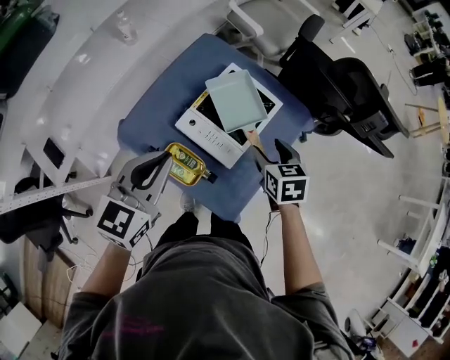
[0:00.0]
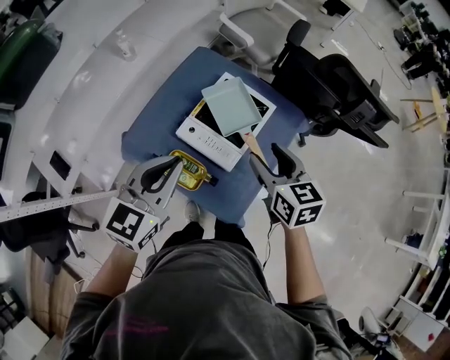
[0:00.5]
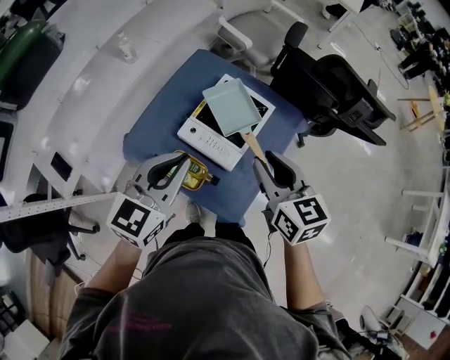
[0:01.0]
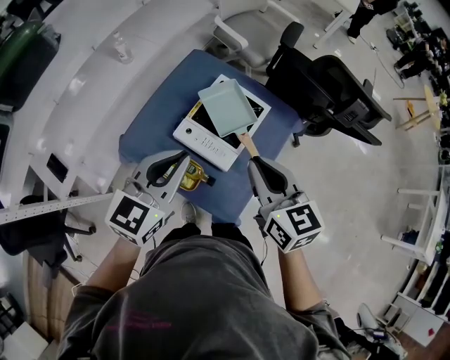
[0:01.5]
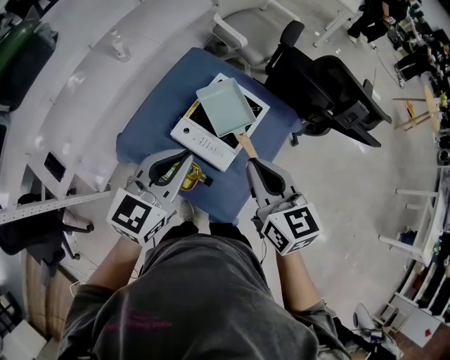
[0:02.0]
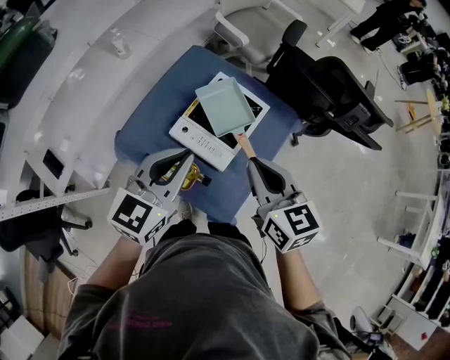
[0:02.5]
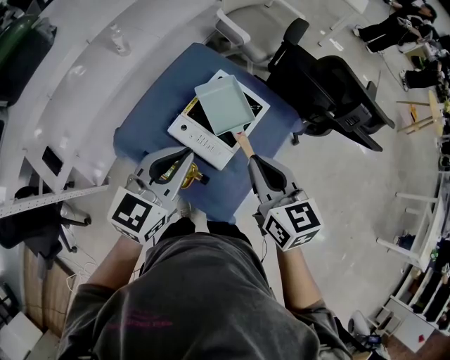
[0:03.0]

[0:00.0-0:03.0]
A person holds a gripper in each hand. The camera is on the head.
0:00.0 to 0:01.5: The left gripper changes place by some 5 cm; the right gripper goes about 20 cm upward and backward, swivels approximately 30 degrees, and closes.
0:01.5 to 0:03.0: The grippers stay close to where they were, moving slightly.

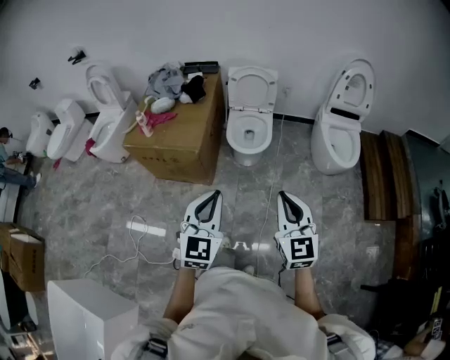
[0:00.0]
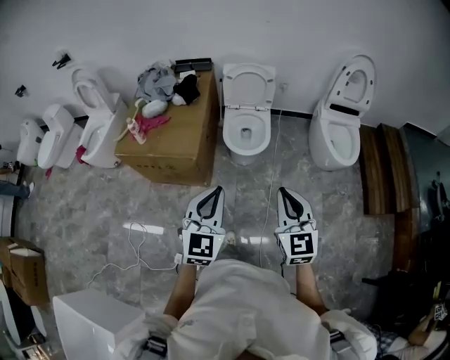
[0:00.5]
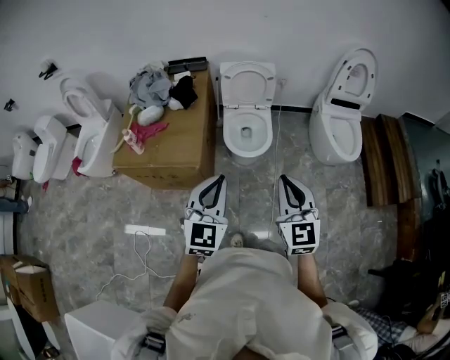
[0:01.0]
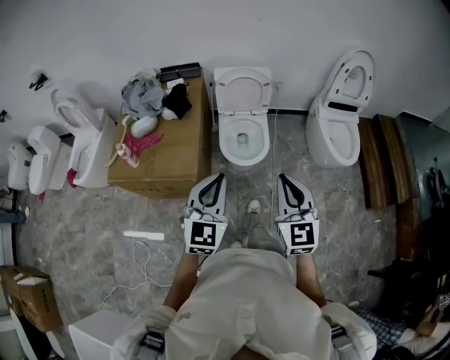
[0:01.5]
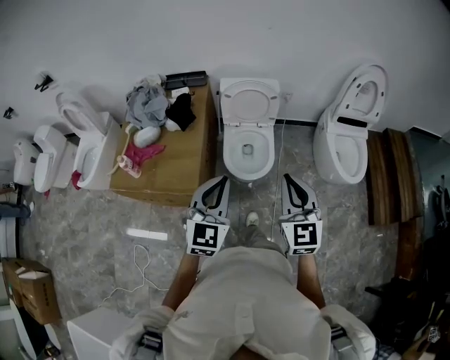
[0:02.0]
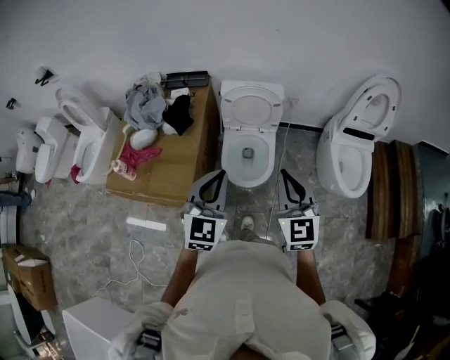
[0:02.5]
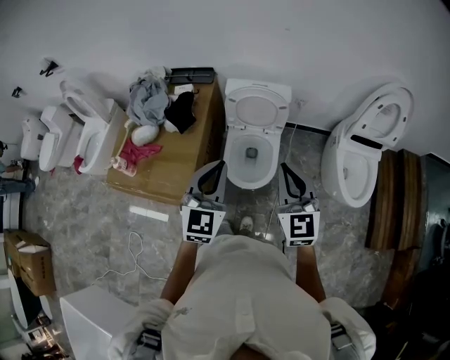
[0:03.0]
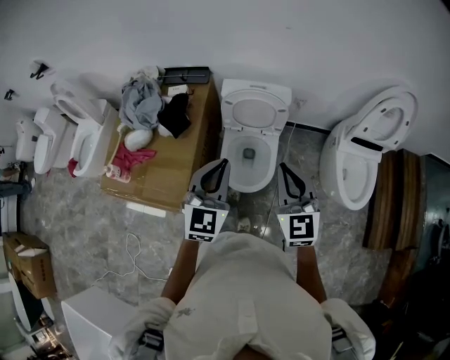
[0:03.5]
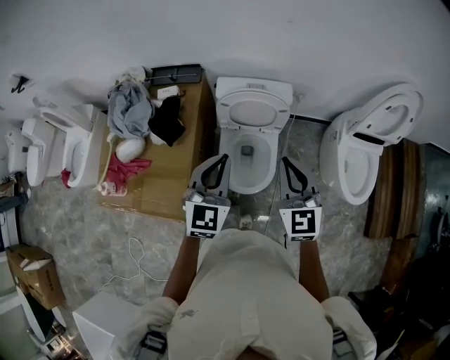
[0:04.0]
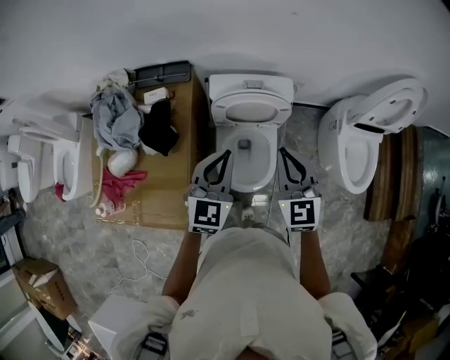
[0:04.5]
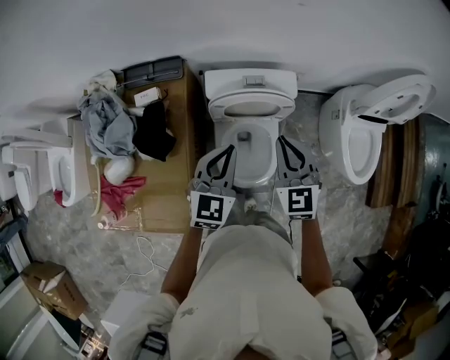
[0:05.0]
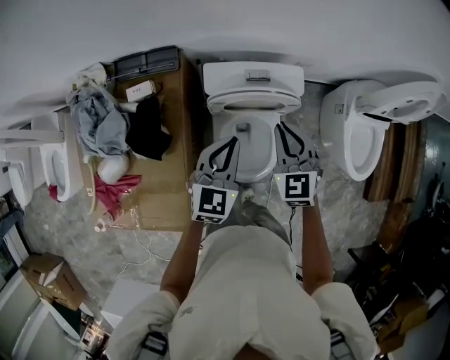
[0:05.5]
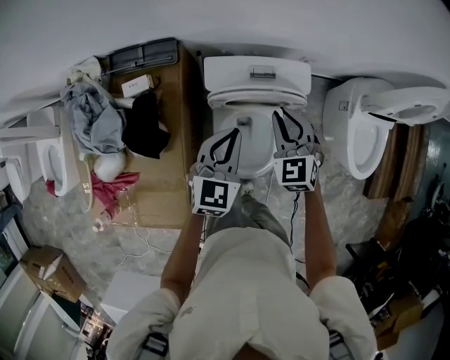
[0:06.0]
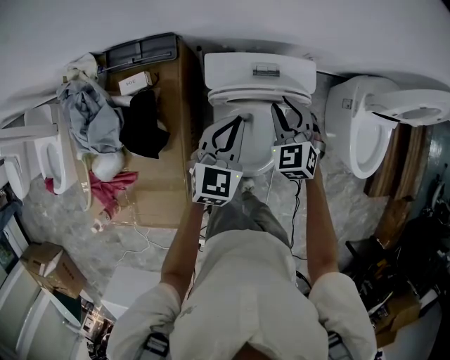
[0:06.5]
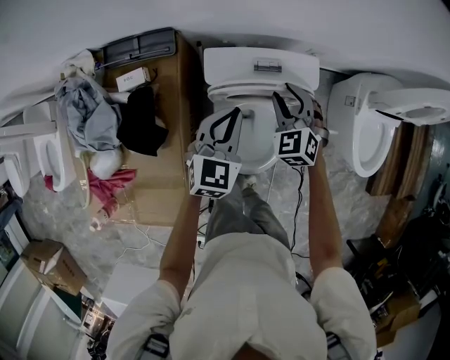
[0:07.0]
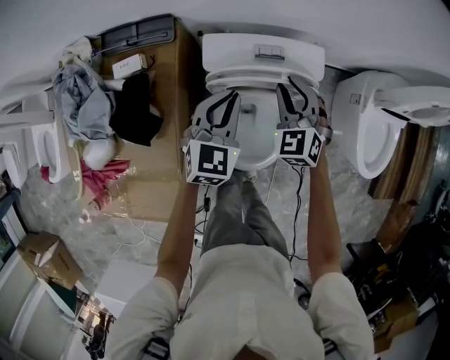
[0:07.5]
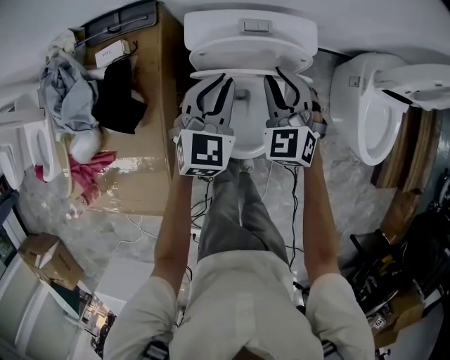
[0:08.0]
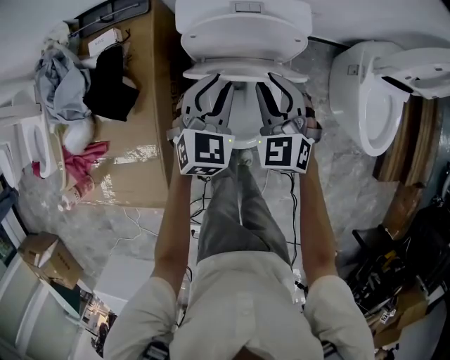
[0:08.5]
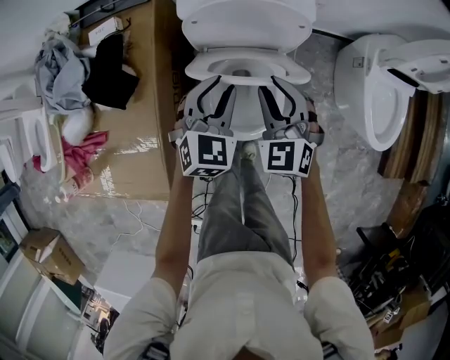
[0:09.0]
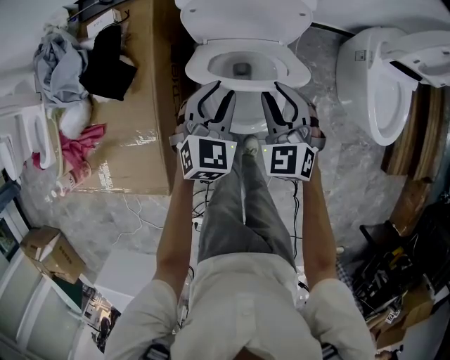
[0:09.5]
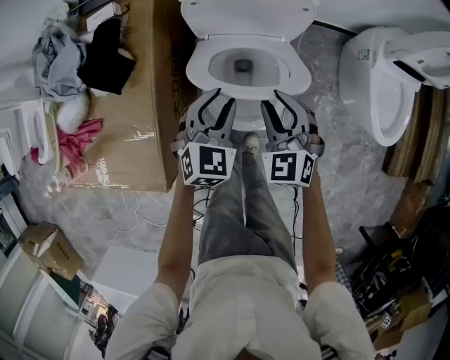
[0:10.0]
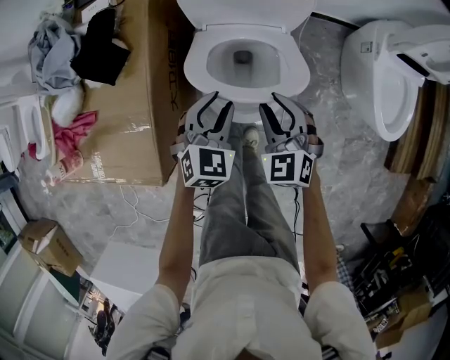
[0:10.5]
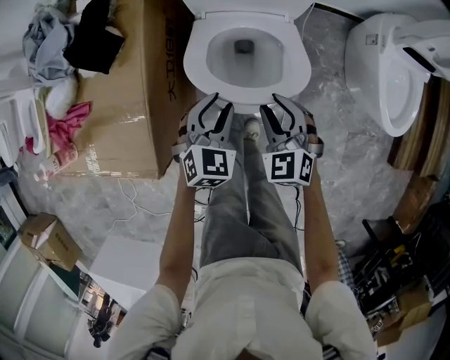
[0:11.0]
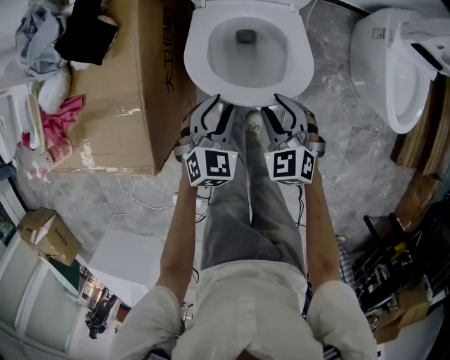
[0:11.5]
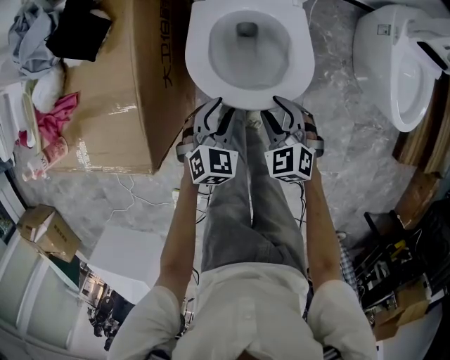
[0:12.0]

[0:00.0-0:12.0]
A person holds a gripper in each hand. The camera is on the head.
0:00.0 to 0:02.0: The grippers both shift forward by approximately 30 cm.
0:02.0 to 0:04.0: The grippers both shift forward by some 30 cm.
0:04.0 to 0:06.0: The two grippers go roughly 30 cm forward and downward. The right gripper turns by approximately 20 degrees.
0:06.0 to 0:08.0: The grippers both shift downward by about 5 cm.
0:08.0 to 0:10.0: The right gripper moves backward, about 20 cm, while the left gripper is displaced backward and downward by some 20 cm, and opens up.
0:10.0 to 0:12.0: The two grippers go about 20 cm downward and backward.

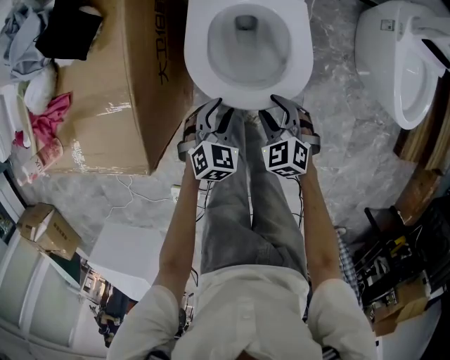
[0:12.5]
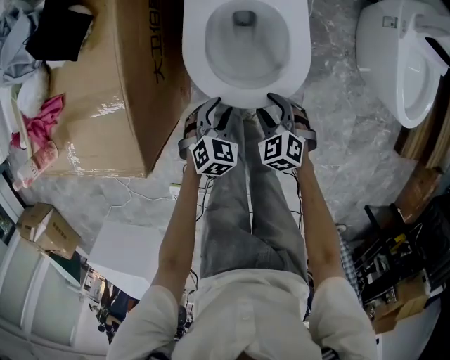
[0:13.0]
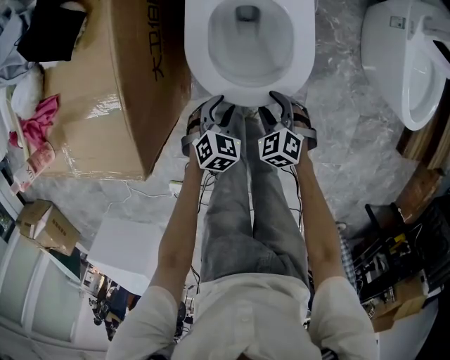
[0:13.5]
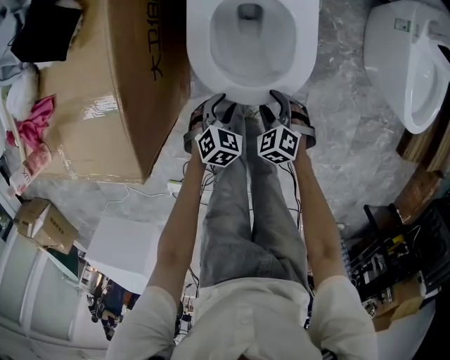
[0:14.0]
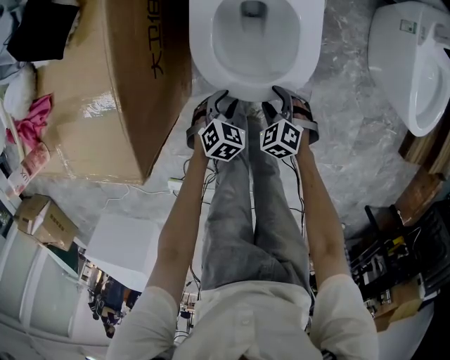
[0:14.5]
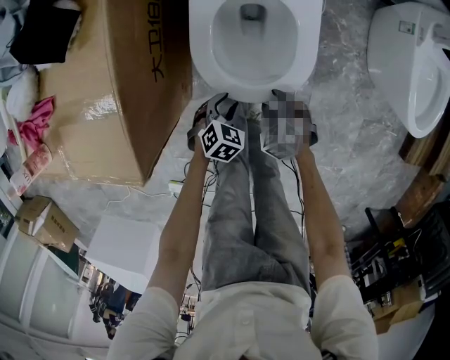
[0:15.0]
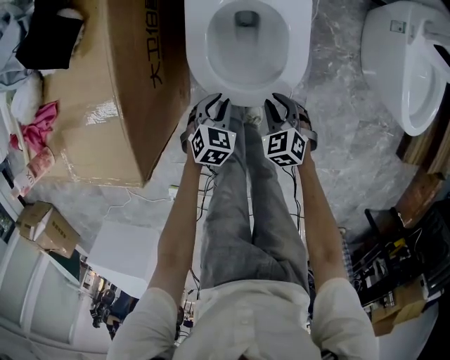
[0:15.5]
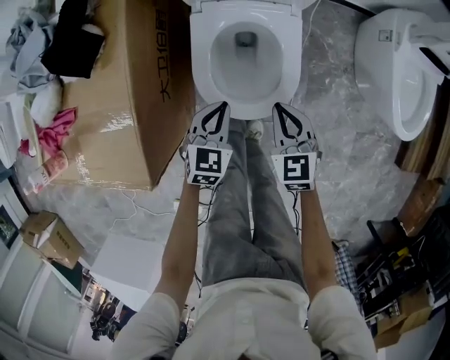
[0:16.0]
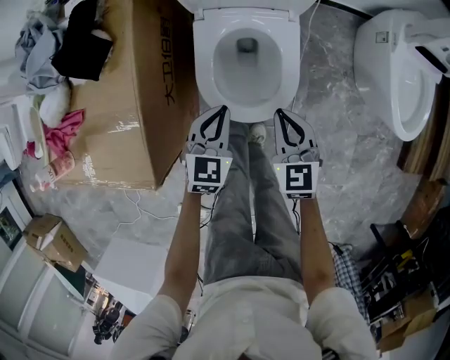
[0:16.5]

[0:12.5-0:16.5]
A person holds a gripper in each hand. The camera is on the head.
0:12.5 to 0:14.5: The grippers both shift downward by approximately 15 cm.
0:14.5 to 0:16.5: The right gripper is displaced upward by approximately 25 cm, angles its fingers upward, by roughly 30 degrees, and closes up. Meanwhile the left gripper shifts some 25 cm upward and forward, swivels roughly 30 degrees, and closes.

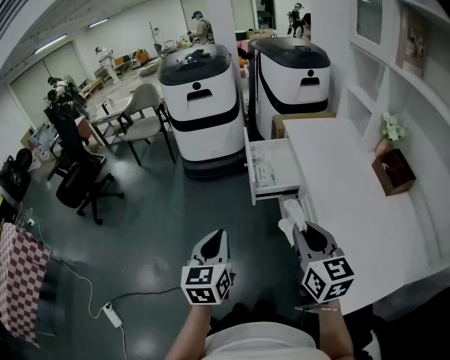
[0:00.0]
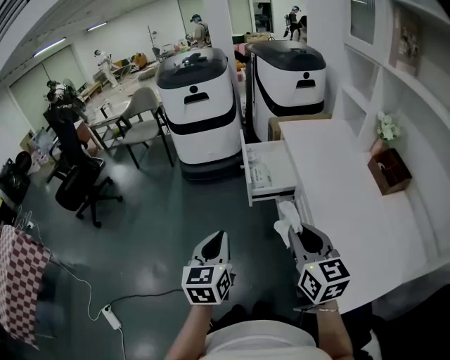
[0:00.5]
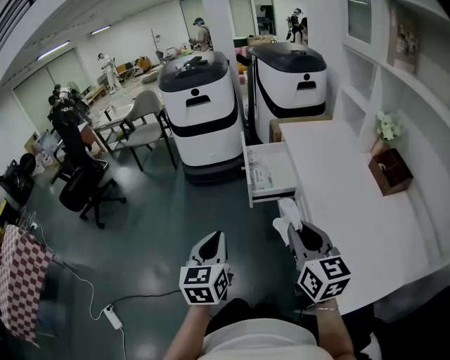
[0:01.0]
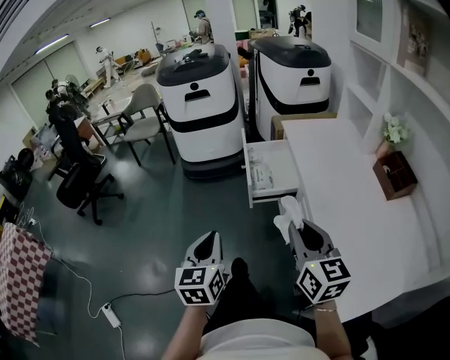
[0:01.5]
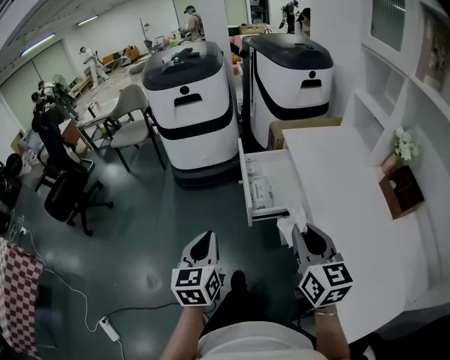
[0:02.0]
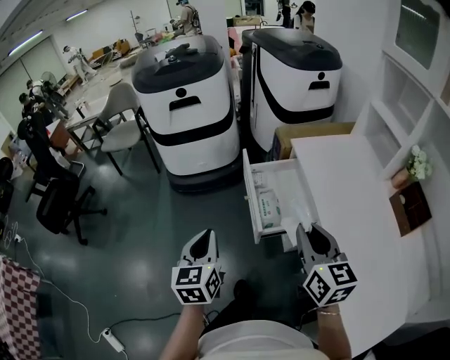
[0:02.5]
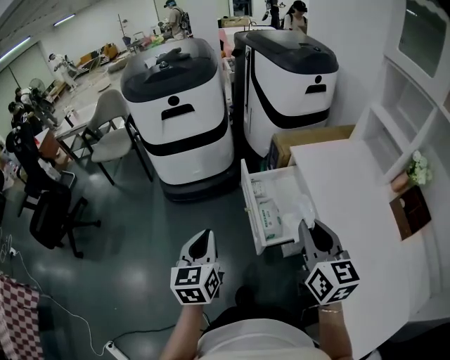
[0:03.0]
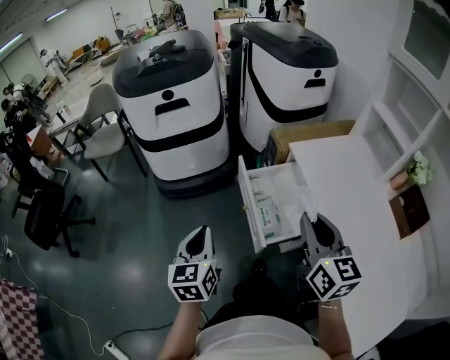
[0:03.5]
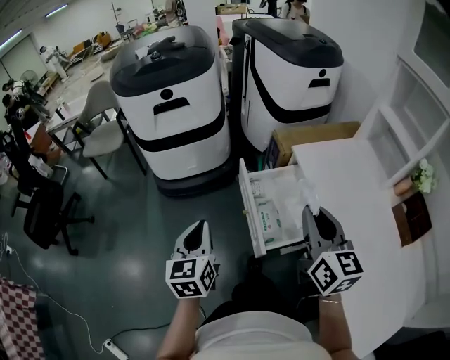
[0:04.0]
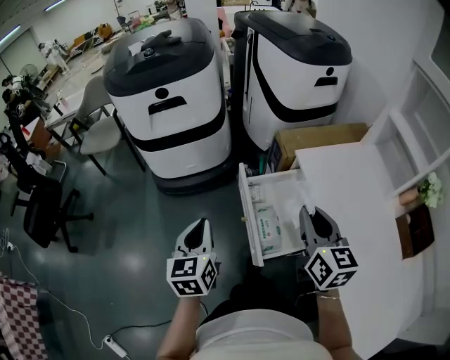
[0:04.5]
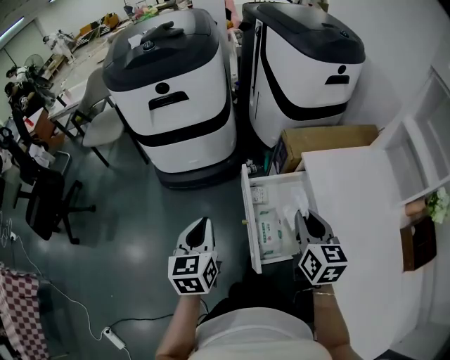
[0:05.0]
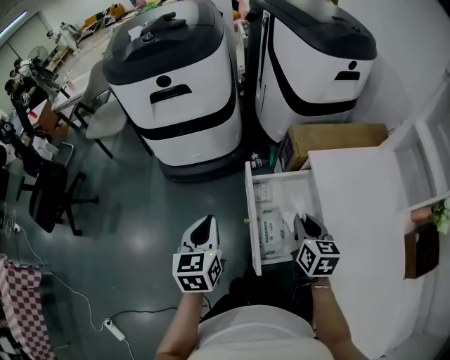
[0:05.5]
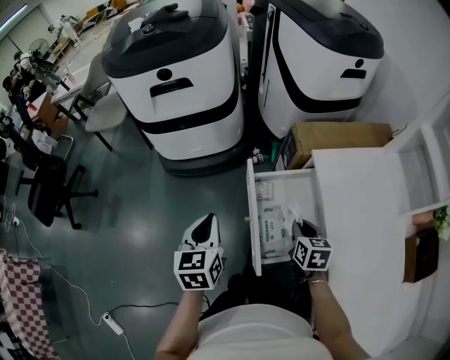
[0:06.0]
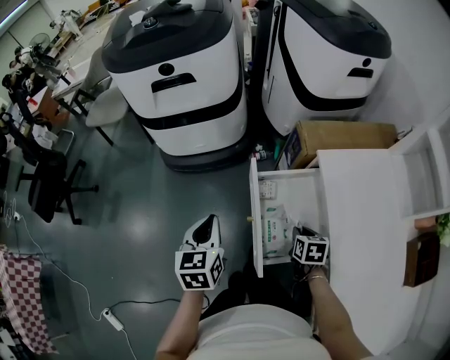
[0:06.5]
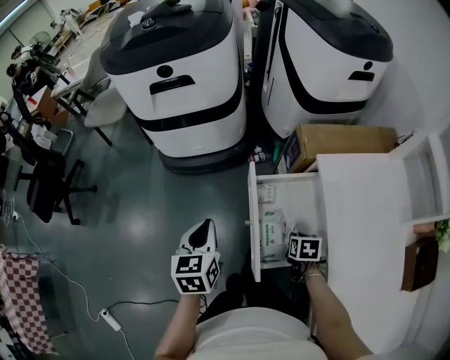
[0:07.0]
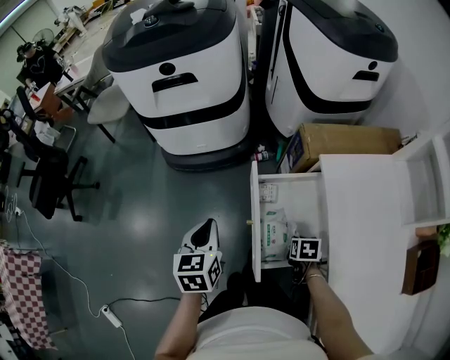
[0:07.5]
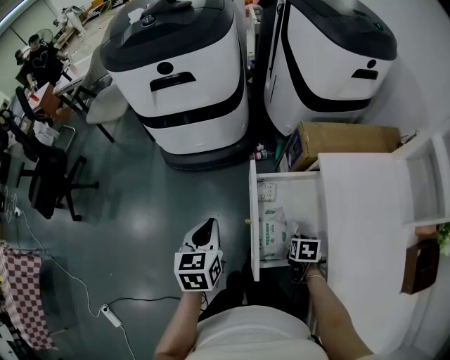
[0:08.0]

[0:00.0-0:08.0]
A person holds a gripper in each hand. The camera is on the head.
0:00.0 to 0:02.0: Both grippers travel together forward, approximately 15 cm.
0:02.0 to 0:04.0: Both grippers move forward, roughly 25 cm.
0:04.0 to 0:06.0: The right gripper travels downward by some 25 cm, and angles its fingers downward, by some 40 degrees. Meanwhile the left gripper heads forward and downward, covering approximately 10 cm.
0:06.0 to 0:08.0: The right gripper moves downward, about 15 cm, and changes its angle by approximately 30 degrees.
